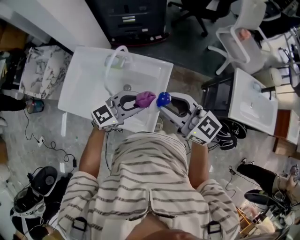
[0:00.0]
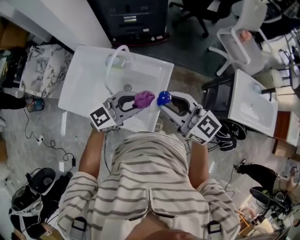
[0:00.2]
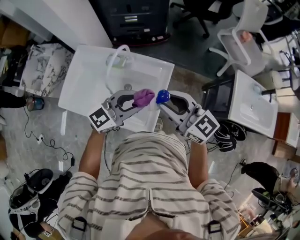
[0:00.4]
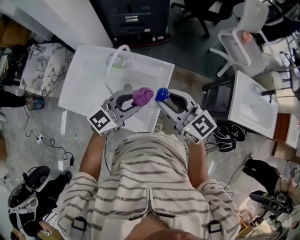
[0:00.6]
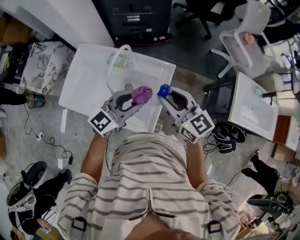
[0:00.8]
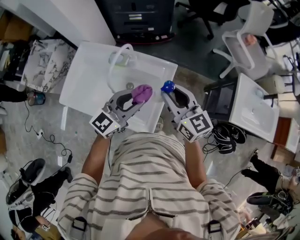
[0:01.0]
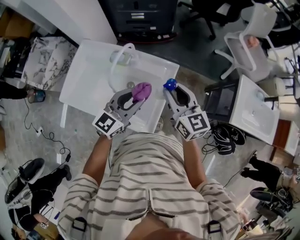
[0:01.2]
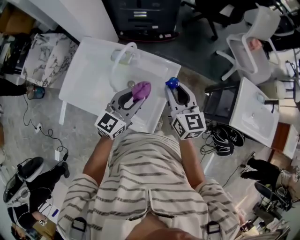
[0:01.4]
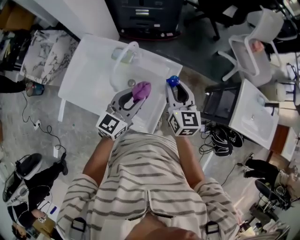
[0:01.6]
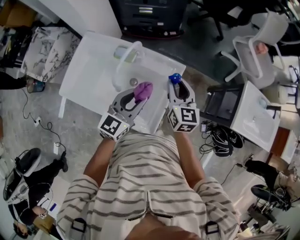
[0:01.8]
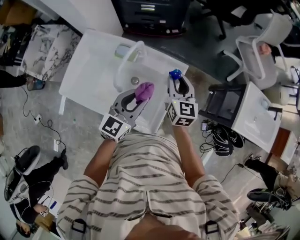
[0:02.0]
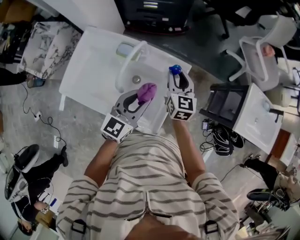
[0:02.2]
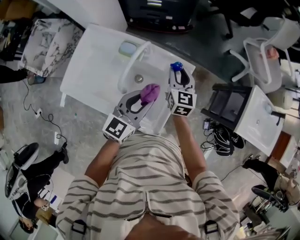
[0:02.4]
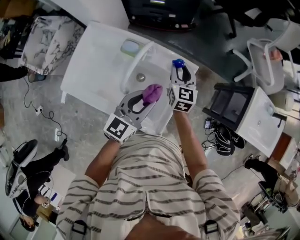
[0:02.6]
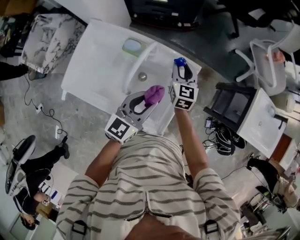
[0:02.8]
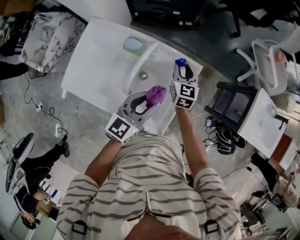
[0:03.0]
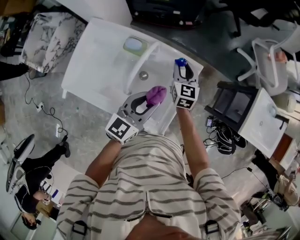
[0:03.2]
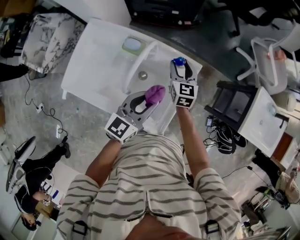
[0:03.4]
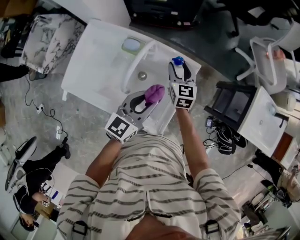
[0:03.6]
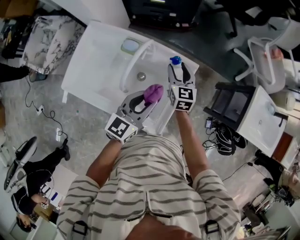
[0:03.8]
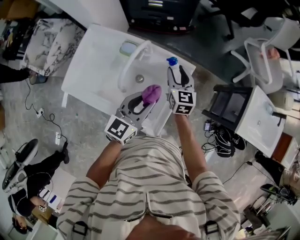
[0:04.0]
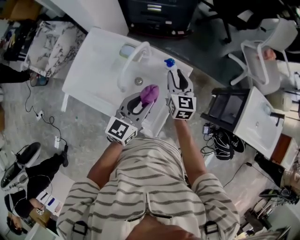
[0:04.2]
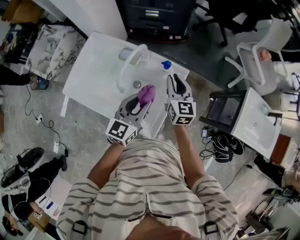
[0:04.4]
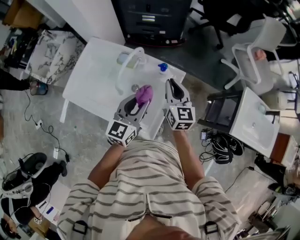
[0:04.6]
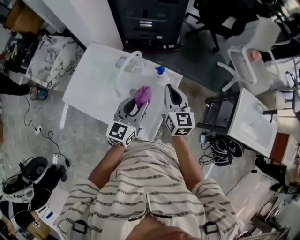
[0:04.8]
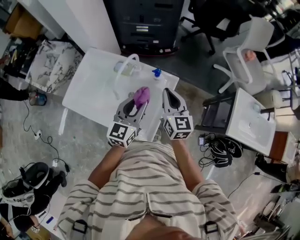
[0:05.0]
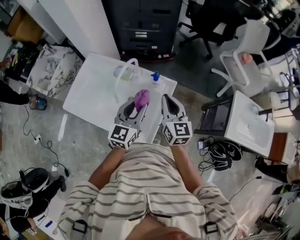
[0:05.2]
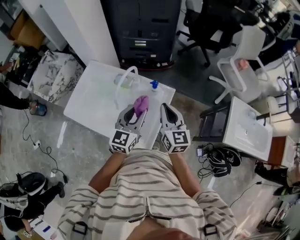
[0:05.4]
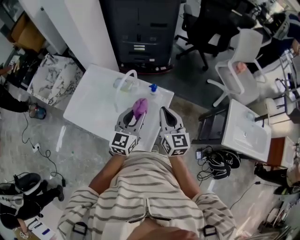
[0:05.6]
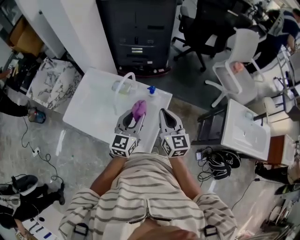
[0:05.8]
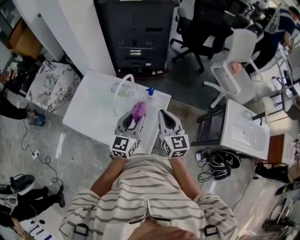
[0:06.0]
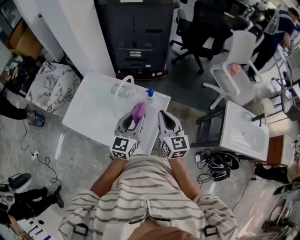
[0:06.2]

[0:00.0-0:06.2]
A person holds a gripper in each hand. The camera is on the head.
0.0 to 1.6 s: The right gripper shifts by approximately 15 cm, and rotates roughly 40 degrees. Meanwhile the left gripper ends up some 5 cm from where it was, and changes its angle by approximately 30 degrees.
1.6 to 3.2 s: The right gripper heads downward, forward and to the left, covering about 20 cm. Meanwhile the left gripper moves approximately 5 cm.
3.2 to 4.6 s: The left gripper ends up about 5 cm from where it was. Meanwhile the right gripper heads upward and backward, covering about 15 cm, and closes.
4.6 to 6.2 s: The right gripper goes roughly 10 cm backward and upward.

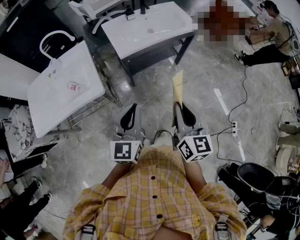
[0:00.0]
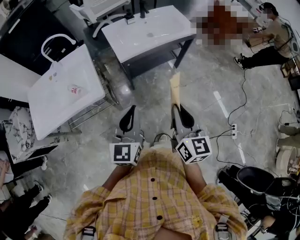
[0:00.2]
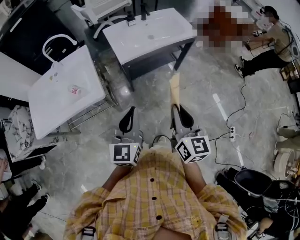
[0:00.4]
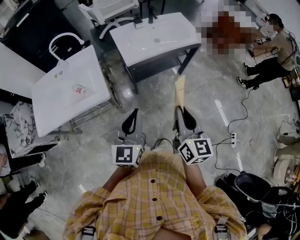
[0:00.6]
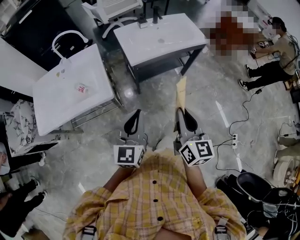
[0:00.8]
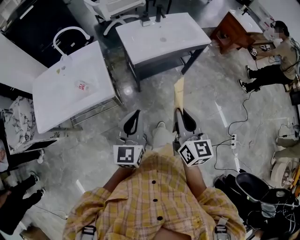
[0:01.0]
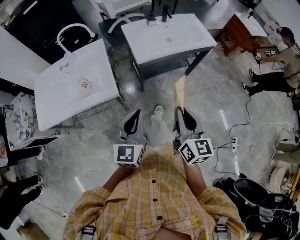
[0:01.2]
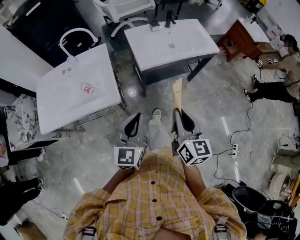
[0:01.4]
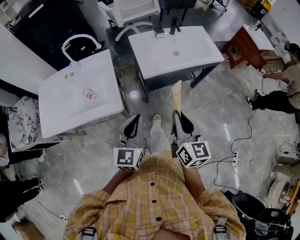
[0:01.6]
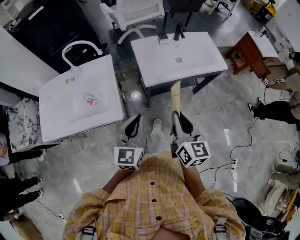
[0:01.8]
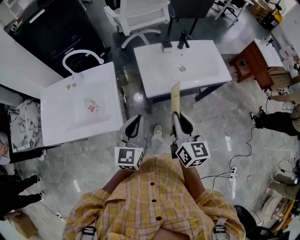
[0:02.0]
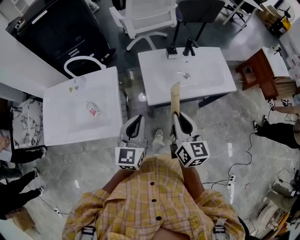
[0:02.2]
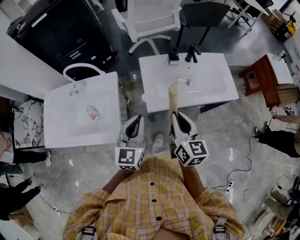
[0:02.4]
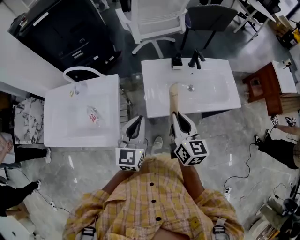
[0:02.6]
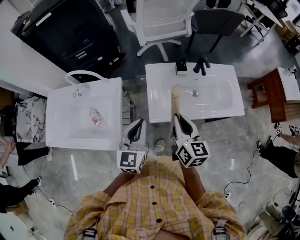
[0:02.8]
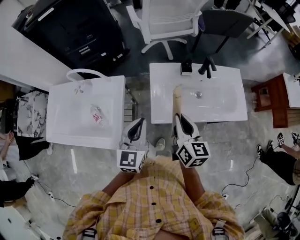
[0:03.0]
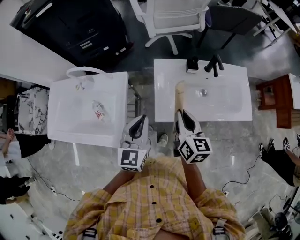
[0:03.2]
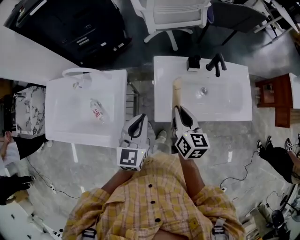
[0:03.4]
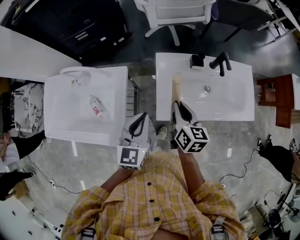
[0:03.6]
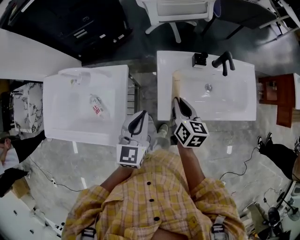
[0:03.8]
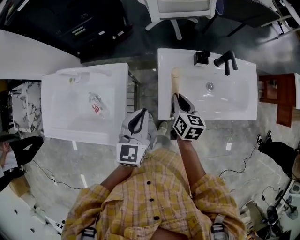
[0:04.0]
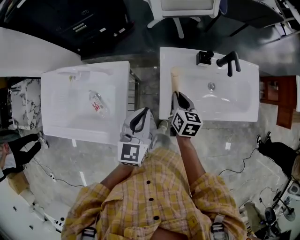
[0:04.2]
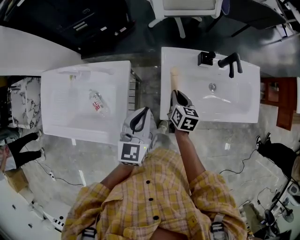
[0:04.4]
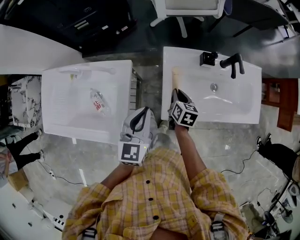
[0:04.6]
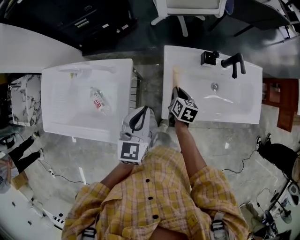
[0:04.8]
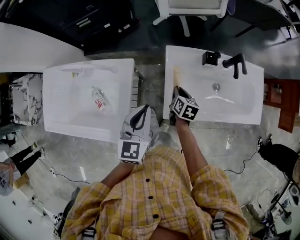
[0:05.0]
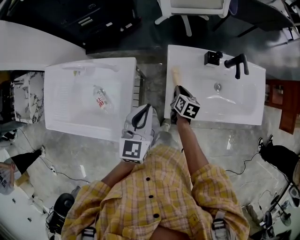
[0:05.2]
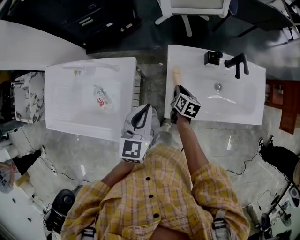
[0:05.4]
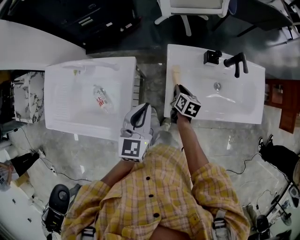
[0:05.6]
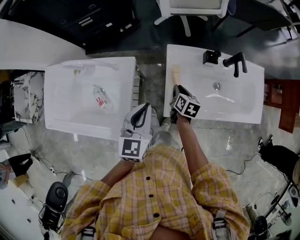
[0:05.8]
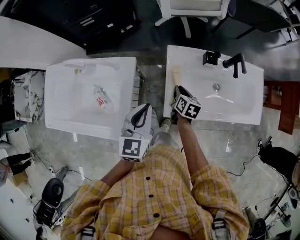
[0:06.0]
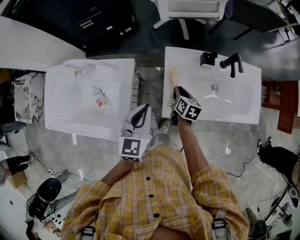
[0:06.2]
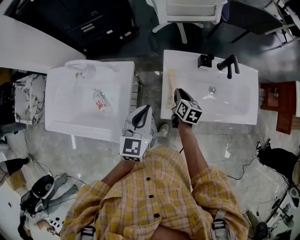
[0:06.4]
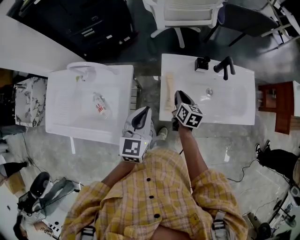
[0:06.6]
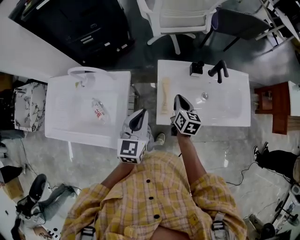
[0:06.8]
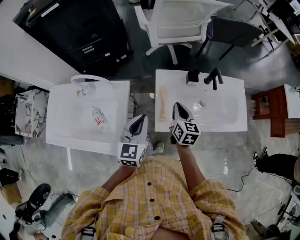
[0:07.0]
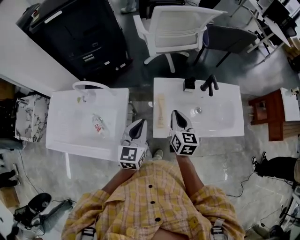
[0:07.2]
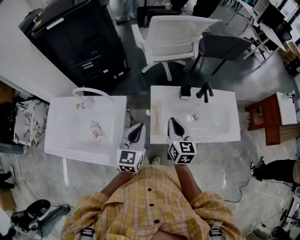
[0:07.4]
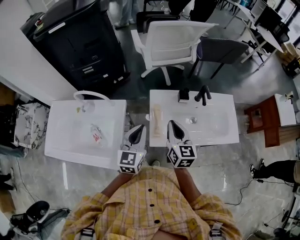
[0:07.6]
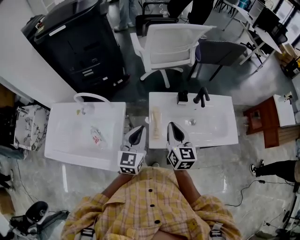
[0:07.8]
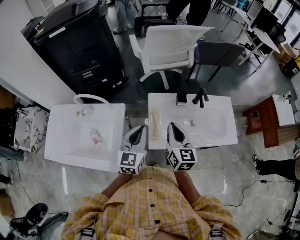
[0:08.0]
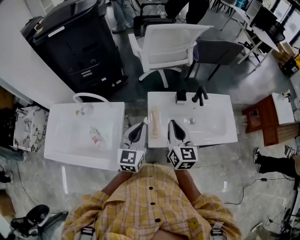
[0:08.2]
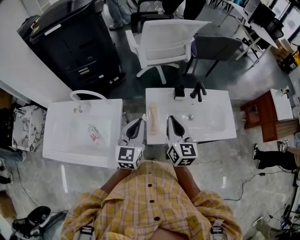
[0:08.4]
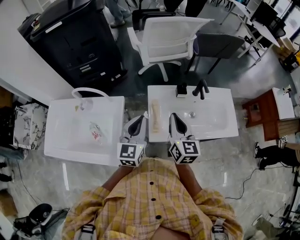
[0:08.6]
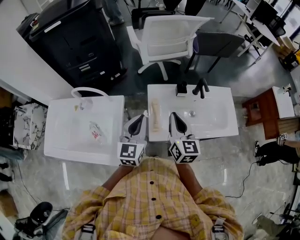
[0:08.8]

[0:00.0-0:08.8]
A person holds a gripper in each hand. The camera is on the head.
0.0 to 1.4 s: The left gripper moves to the left, approximately 5 cm. The right gripper moves to the left and forward, some 10 cm.
1.4 to 3.0 s: The two grippers go about 35 cm forward. The right gripper rotates approximately 20 degrees.
3.0 to 4.4 s: The right gripper goes roughly 25 cm downward and forward, and swivels roughly 20 degrees. Meanwhile the left gripper heads forward and downward, covering about 10 cm.
4.4 to 5.8 s: The right gripper shifts roughly 5 cm downward.
5.8 to 7.4 s: The right gripper travels upward by roughly 25 cm, and changes its angle by about 30 degrees, while the left gripper is displaced upward by some 5 cm.
7.4 to 8.8 s: The right gripper shifts roughly 5 cm upward.

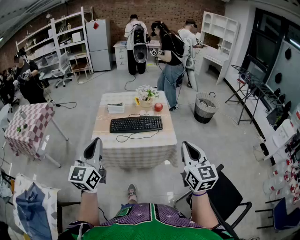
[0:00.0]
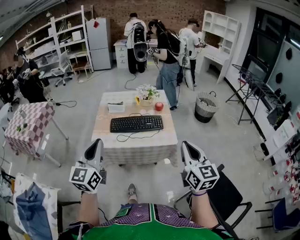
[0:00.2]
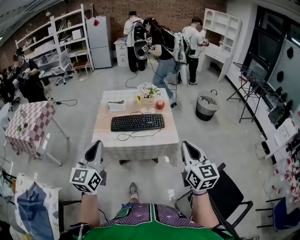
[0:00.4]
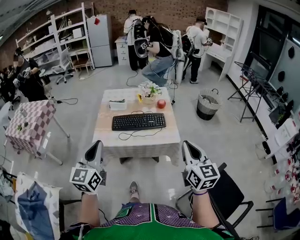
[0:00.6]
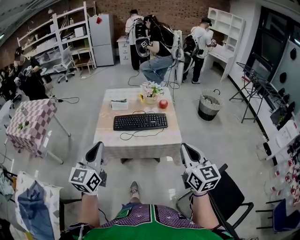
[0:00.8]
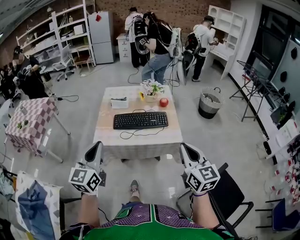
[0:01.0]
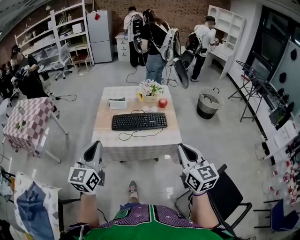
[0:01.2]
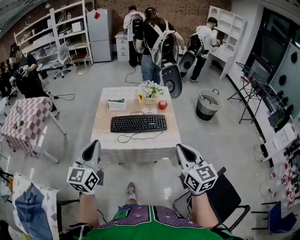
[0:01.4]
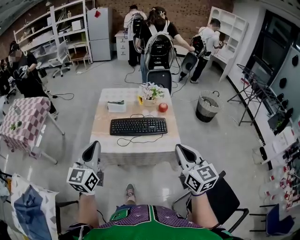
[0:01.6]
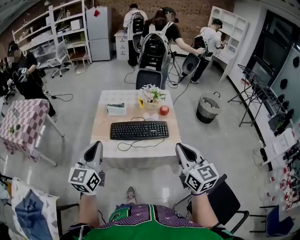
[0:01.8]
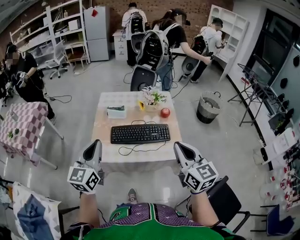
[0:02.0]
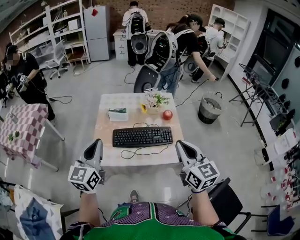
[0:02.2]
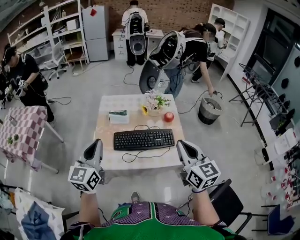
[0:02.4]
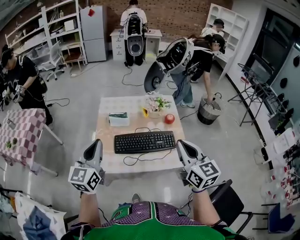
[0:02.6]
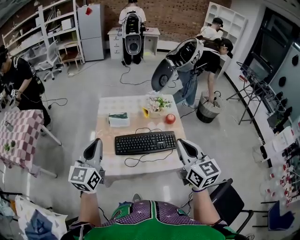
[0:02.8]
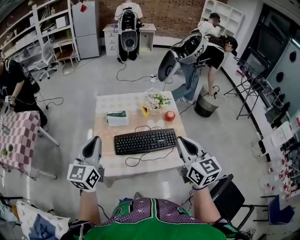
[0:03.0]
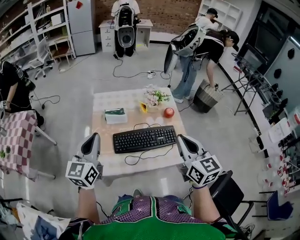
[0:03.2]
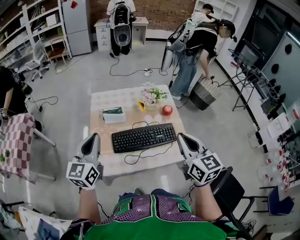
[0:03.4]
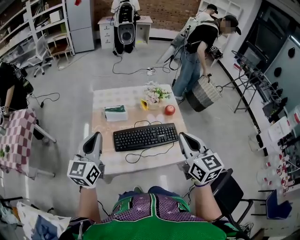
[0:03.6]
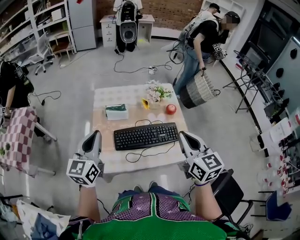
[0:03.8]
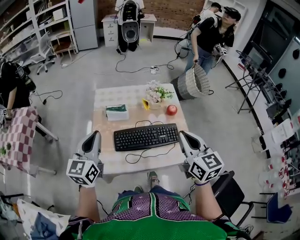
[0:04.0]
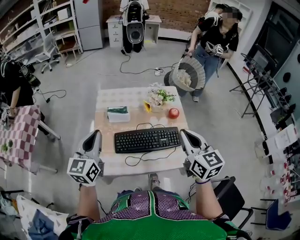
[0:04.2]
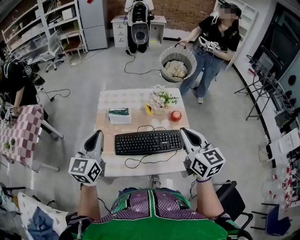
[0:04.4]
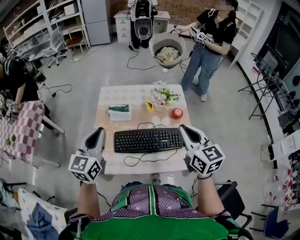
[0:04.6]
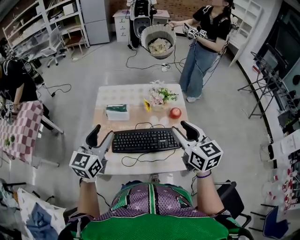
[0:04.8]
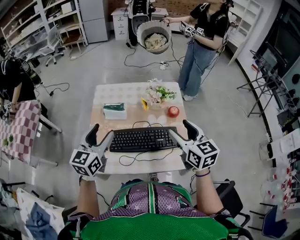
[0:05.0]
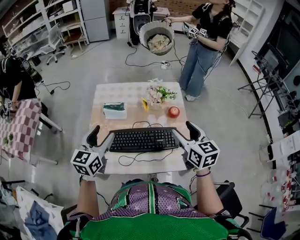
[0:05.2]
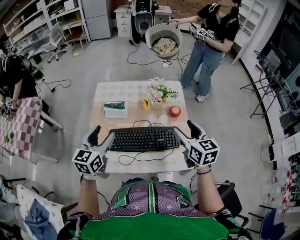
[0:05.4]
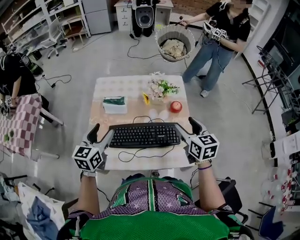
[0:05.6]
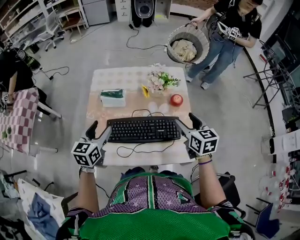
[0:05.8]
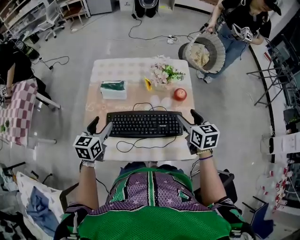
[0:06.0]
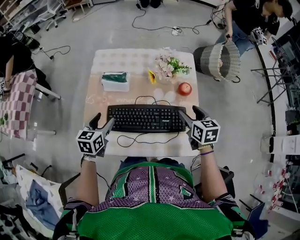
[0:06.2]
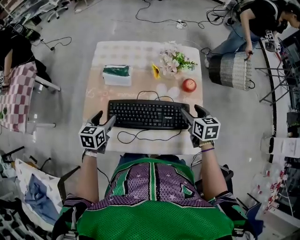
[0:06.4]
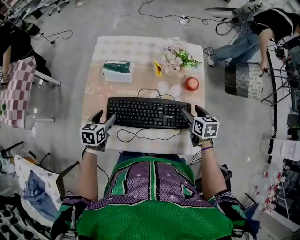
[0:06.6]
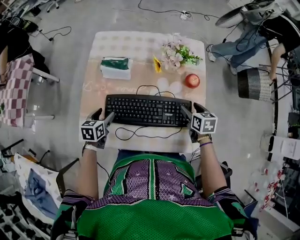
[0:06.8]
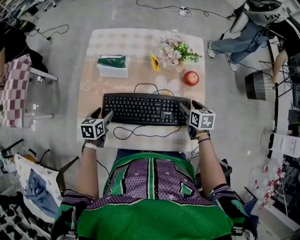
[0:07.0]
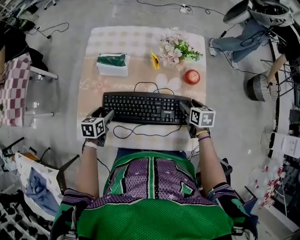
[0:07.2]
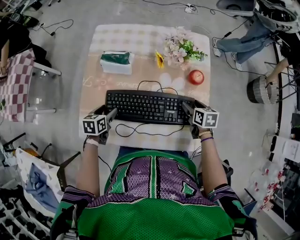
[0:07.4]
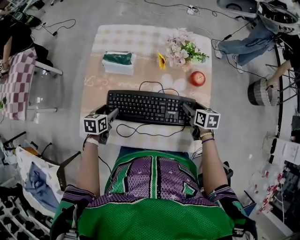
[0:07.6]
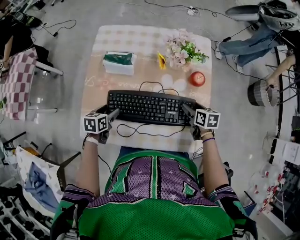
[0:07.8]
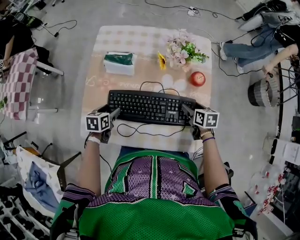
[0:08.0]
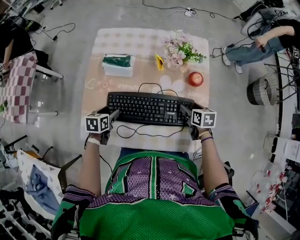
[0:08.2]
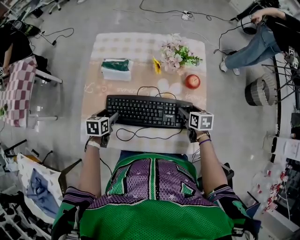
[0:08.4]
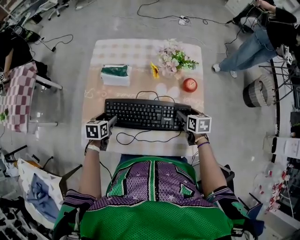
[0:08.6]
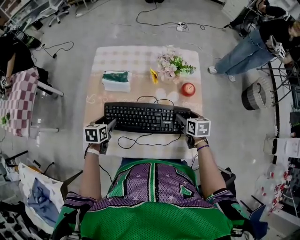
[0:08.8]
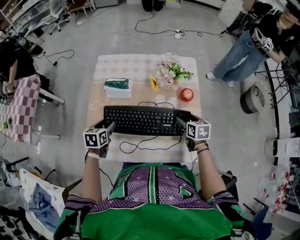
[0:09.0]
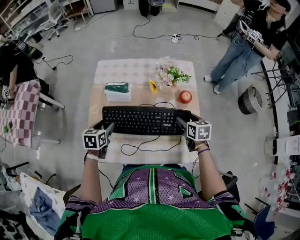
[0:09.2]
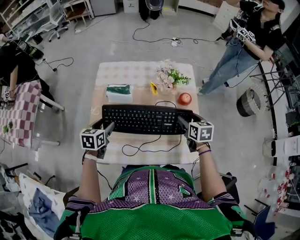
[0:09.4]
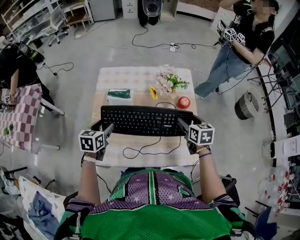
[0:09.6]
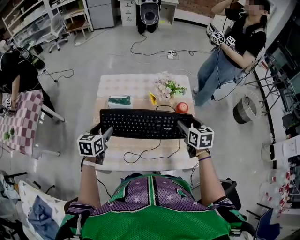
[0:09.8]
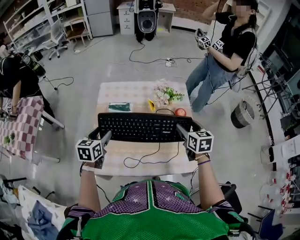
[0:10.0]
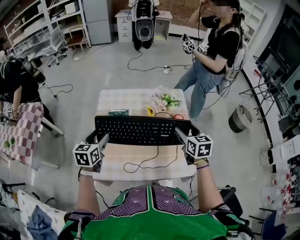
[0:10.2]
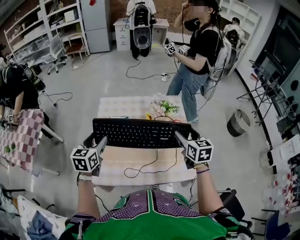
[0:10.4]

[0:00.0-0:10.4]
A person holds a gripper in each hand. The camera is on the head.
0.0 to 1.4 s: The left gripper heads forward, covering about 5 cm. Meanwhile the right gripper heads forward and to the left, covering some 10 cm.
1.4 to 3.0 s: The two grippers go approximately 25 cm forward.
3.0 to 4.4 s: Both grippers travel together forward, some 5 cm.
4.4 to 6.0 s: The right gripper heads downward and forward, covering approximately 25 cm, changes its angle by some 20 degrees, and opens; the left gripper shifts roughly 20 cm downward, changes its angle by roughly 30 degrees, and opens its fingers.
6.0 to 7.4 s: The grippers both shift downward by some 20 cm. The right gripper changes its angle by about 20 degrees, while the left gripper swivels approximately 30 degrees.
7.4 to 9.0 s: The two grippers go approximately 5 cm upward.
9.0 to 10.4 s: Both grippers travel together upward, roughly 25 cm. The right gripper rotates about 30 degrees. Meanwhile the left gripper turns by approximately 30 degrees.
